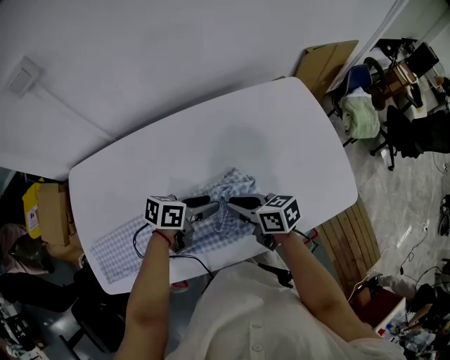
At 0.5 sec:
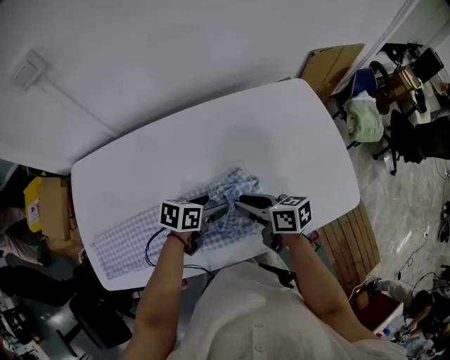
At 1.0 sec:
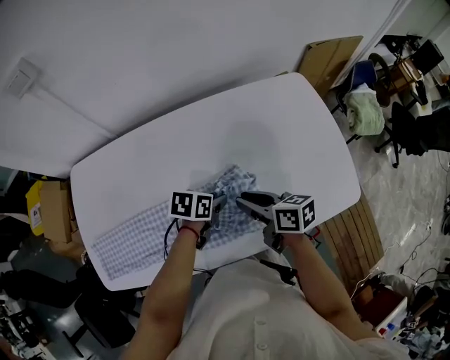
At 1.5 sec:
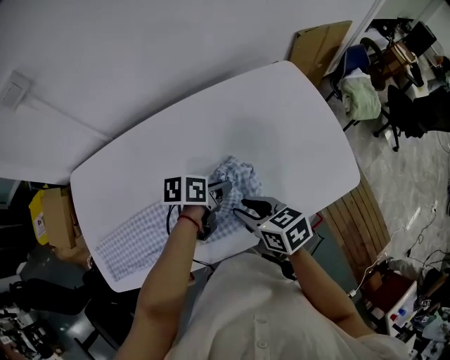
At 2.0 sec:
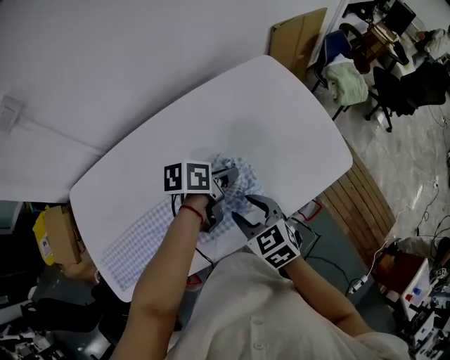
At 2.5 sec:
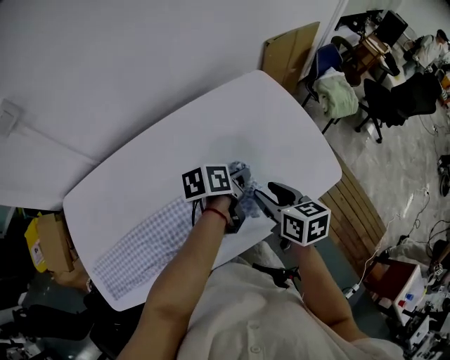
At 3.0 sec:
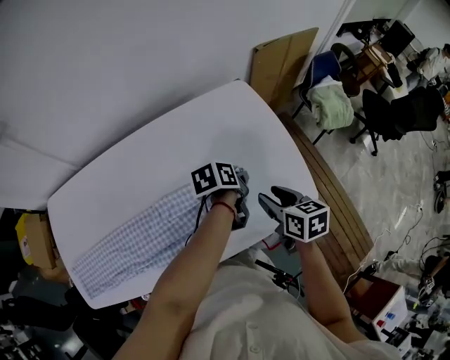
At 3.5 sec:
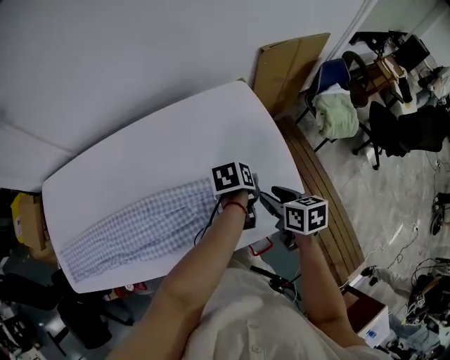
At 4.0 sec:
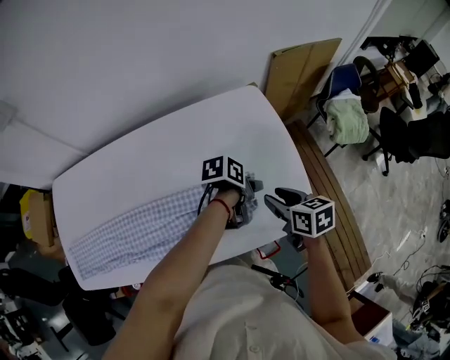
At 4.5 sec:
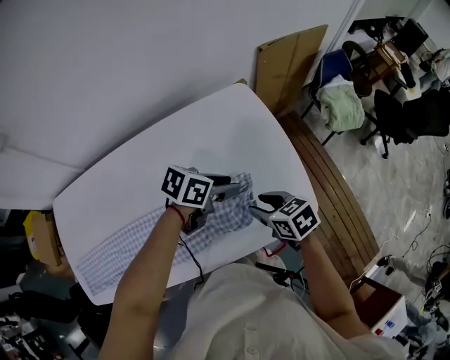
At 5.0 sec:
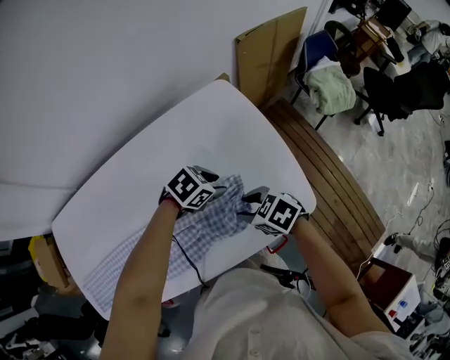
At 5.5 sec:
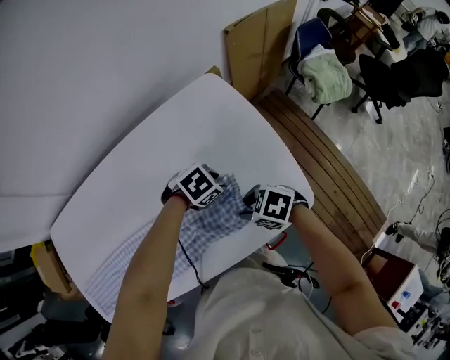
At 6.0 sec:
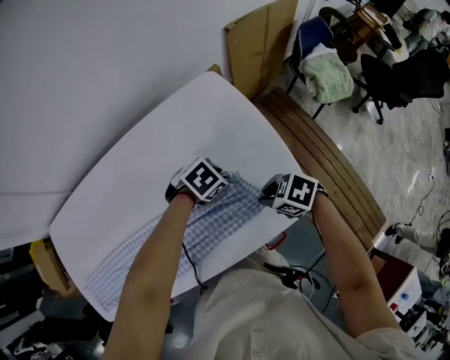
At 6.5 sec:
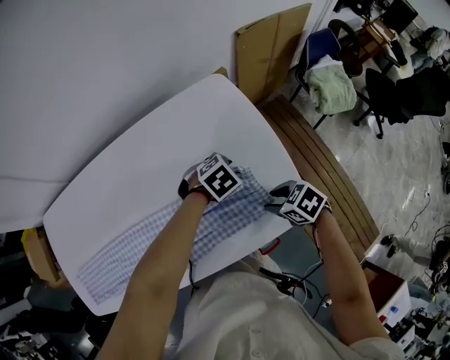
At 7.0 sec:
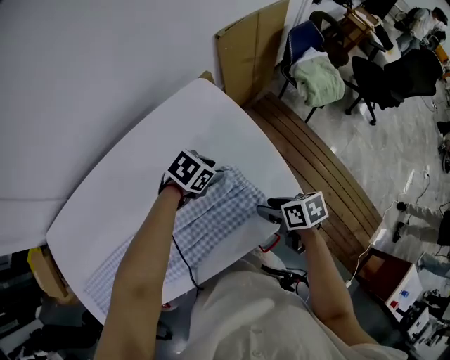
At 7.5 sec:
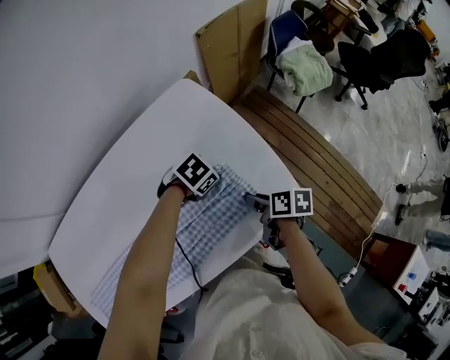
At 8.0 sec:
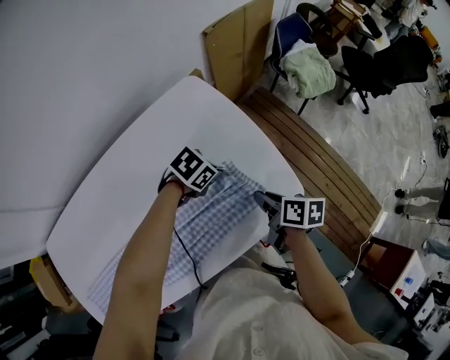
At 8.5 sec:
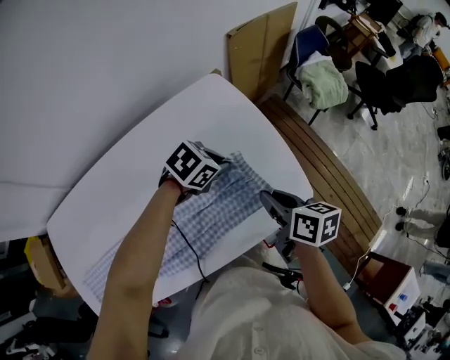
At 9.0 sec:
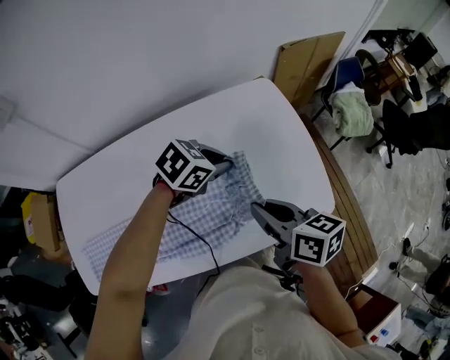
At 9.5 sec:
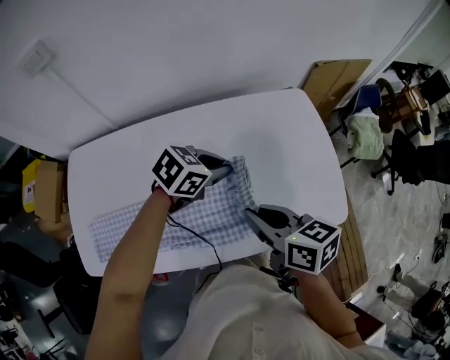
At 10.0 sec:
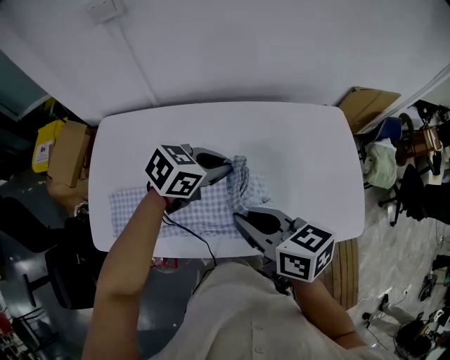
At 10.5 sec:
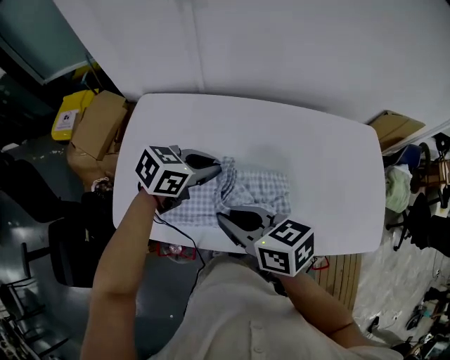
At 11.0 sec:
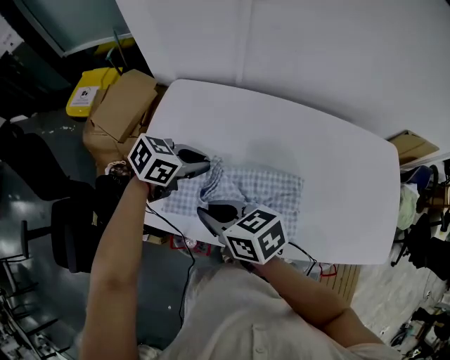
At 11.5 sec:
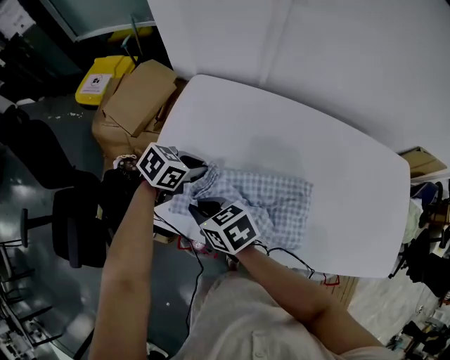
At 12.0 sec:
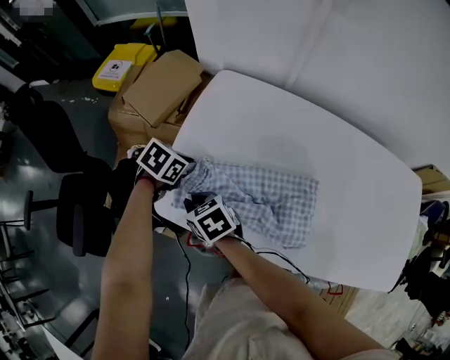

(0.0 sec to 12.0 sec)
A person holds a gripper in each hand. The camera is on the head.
0.0 sec - 2.0 sec: The left gripper shifts by about 10 cm, and closes up, while the right gripper moves approximately 10 cm, turns by about 40 degrees, and opens up.
2.0 sec - 4.0 sec: Both grippers travel together to the right and forward, some 25 cm. The right gripper swivels about 30 degrees; the left gripper changes its angle by roughly 20 degrees, and opens.
4.0 sec - 6.0 sec: Both grippers move downward, roughly 10 cm. The left gripper rolls clockwise, seen from behind, by approximately 70 degrees. Meanwhile the right gripper turns by roughly 40 degrees, and closes.
6.0 sec - 8.0 sec: The right gripper rotates around the line of its fingers by about 70 degrees, clockwise from behind, and opens and closes again.
8.0 sec - 10.0 sec: The left gripper moves some 40 cm, and turns by about 50 degrees; the right gripper moves some 50 cm, and changes its angle by about 60 degrees.
10.0 sec - 12.0 sec: The two grippers travel together, approximately 50 cm. The left gripper changes its angle by roughly 40 degrees; the right gripper rotates some 40 degrees.

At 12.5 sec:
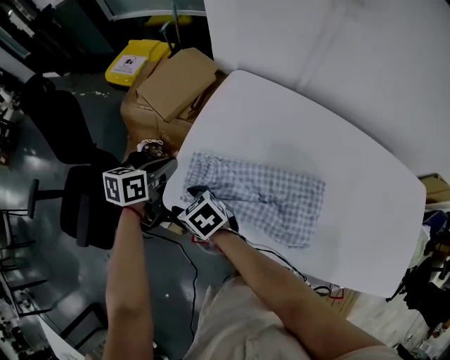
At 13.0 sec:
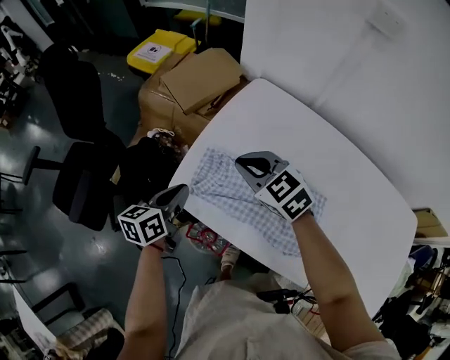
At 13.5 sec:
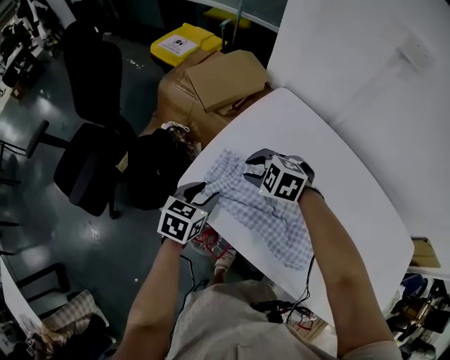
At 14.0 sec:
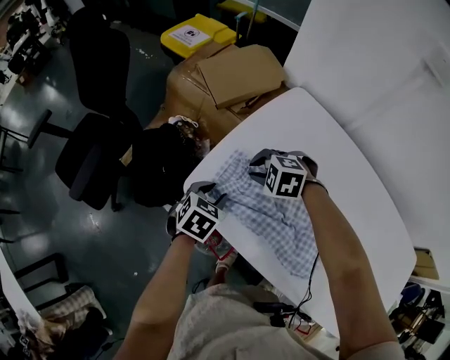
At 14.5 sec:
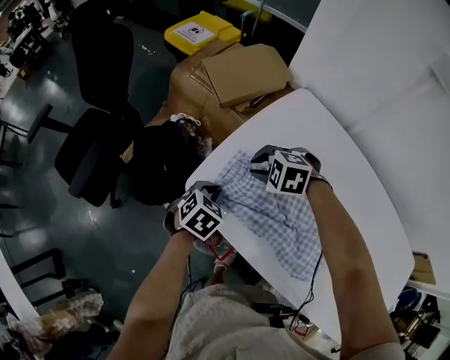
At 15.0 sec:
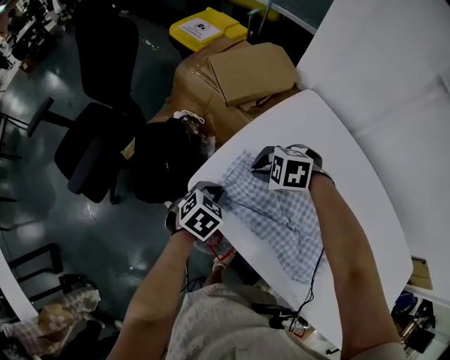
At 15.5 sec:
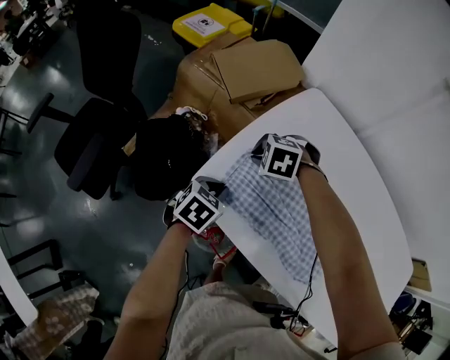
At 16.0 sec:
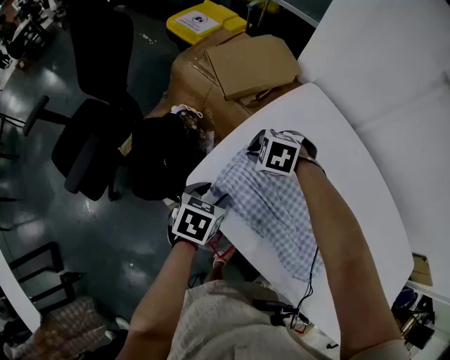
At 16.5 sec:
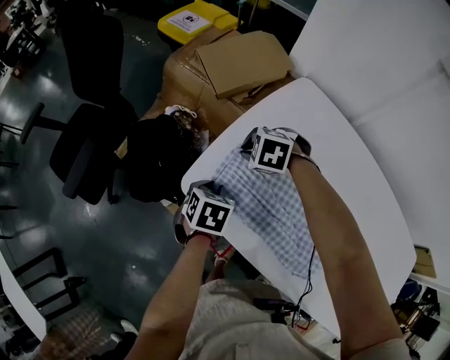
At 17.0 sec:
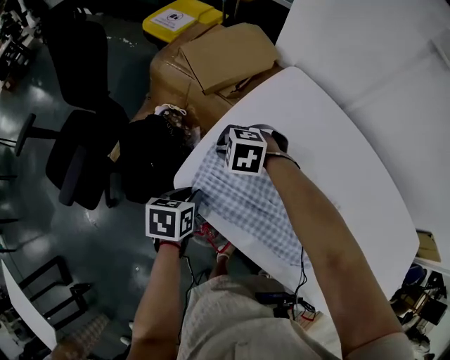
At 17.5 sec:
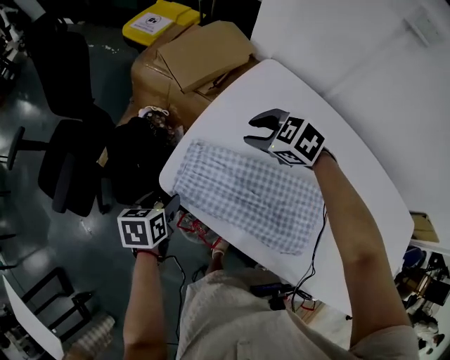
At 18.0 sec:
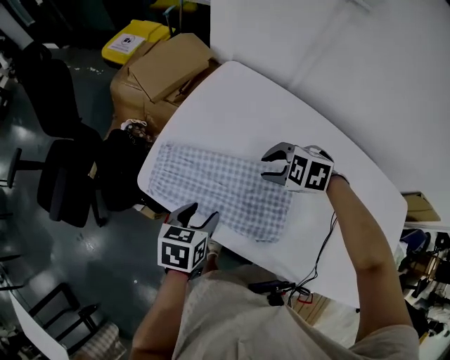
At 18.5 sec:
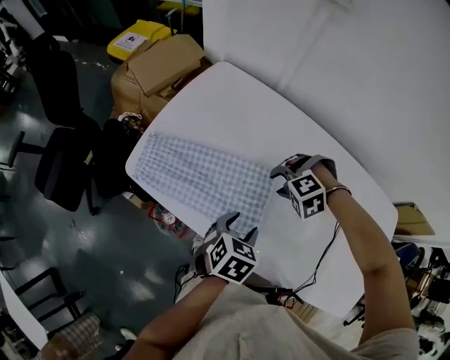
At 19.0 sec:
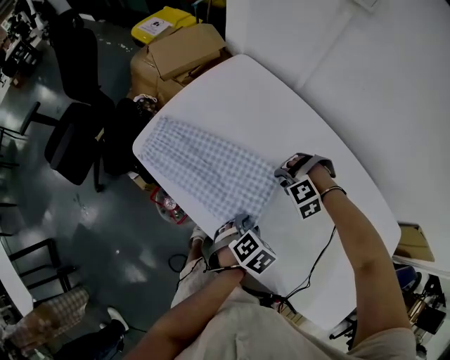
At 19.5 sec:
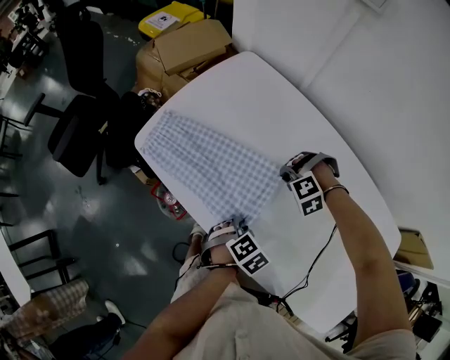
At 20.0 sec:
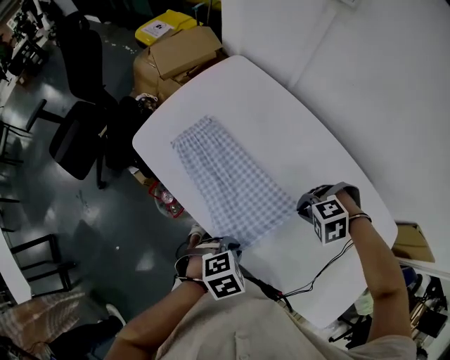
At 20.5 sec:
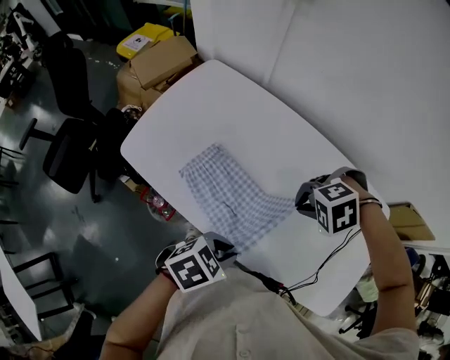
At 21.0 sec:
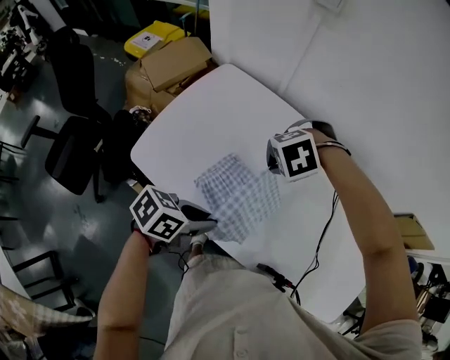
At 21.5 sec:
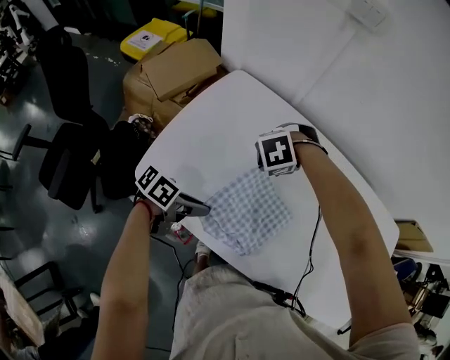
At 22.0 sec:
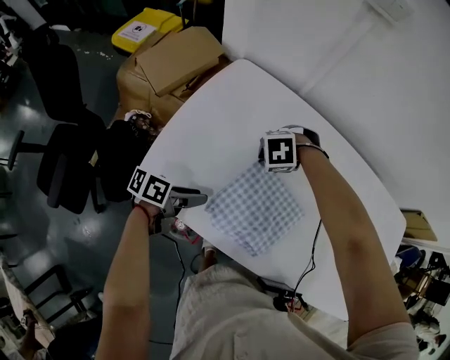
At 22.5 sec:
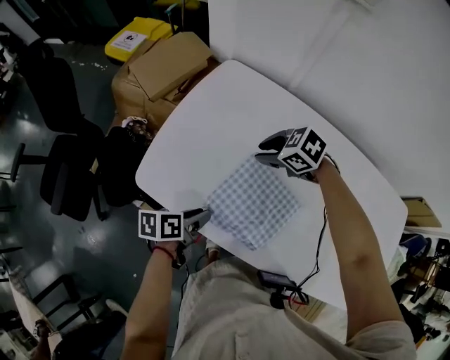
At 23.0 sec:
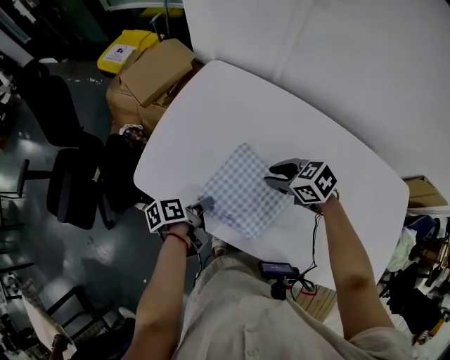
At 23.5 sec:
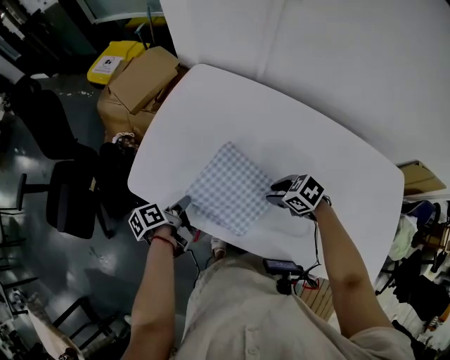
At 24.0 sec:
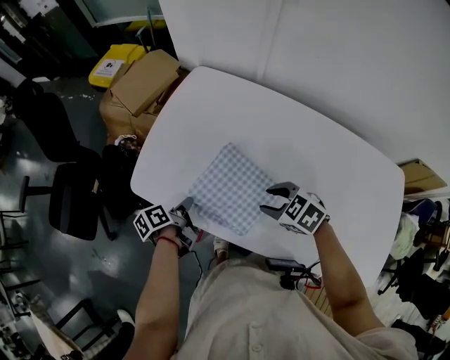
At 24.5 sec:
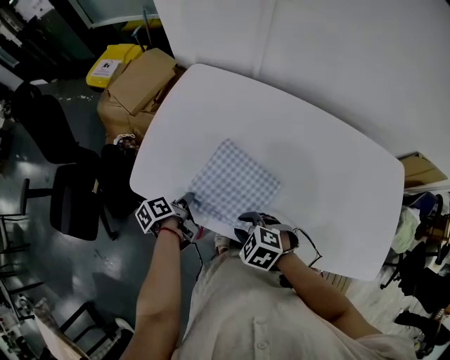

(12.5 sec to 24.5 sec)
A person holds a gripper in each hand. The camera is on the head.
12.5 sec - 14.5 sec: The left gripper goes approximately 15 cm downward and backward, rotates about 40 degrees, and opens and closes again. The right gripper moves to the right and forward, about 15 cm, rotates around the line of its fingers by approximately 60 degrees, counterclockwise from behind, and closes its fingers.
14.5 sec - 16.5 sec: The right gripper changes place by about 5 cm; the left gripper changes its angle by roughly 20 degrees, and opens, then closes again.
16.5 sec - 18.5 sec: The right gripper ends up some 40 cm from where it was, swivels approximately 30 degrees, and opens up; the left gripper changes place by roughly 35 cm, changes its angle by about 30 degrees, and opens its fingers.
18.5 sec - 20.5 sec: The left gripper moves about 20 cm, swivels about 30 degrees, and closes up, while the right gripper moves approximately 20 cm, and closes.
20.5 sec - 22.5 sec: The right gripper shifts by some 35 cm, twists some 50 degrees clockwise, seen from behind, and opens its fingers; the left gripper shifts by some 35 cm, and twists approximately 50 degrees counterclockwise, seen from behind.
22.5 sec - 24.5 sec: The left gripper changes its angle by some 30 degrees, and closes up. The right gripper shifts by about 25 cm.

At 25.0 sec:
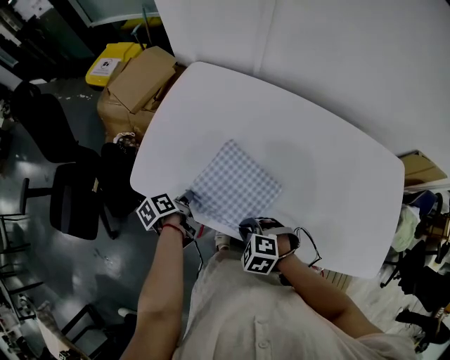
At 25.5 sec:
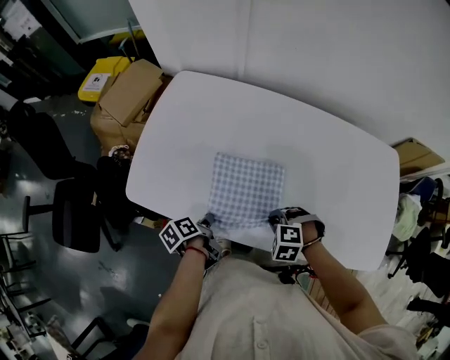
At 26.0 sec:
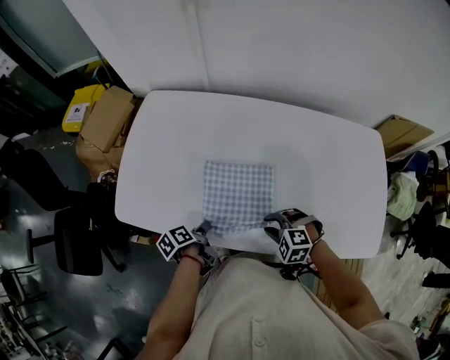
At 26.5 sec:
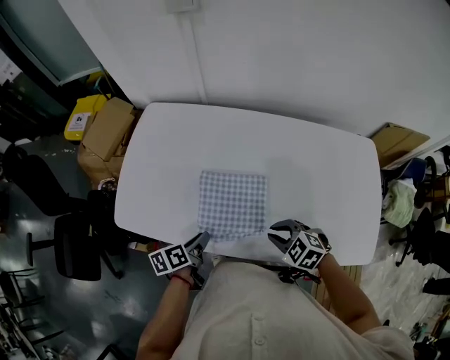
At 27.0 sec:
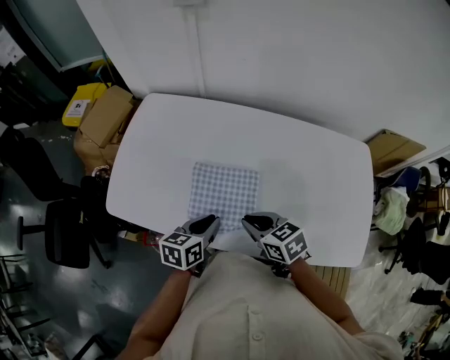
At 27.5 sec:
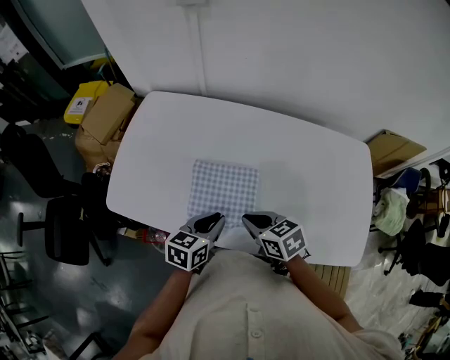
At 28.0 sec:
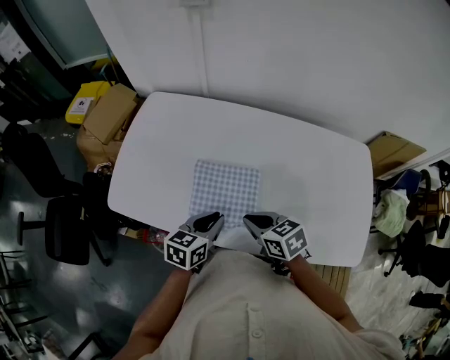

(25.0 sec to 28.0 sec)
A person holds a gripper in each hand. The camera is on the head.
25.0 sec - 26.5 sec: The right gripper ends up some 20 cm from where it was, and swivels approximately 20 degrees. The left gripper ends up approximately 20 cm from where it was, and changes its angle by approximately 30 degrees.
26.5 sec - 28.0 sec: The left gripper heads to the right and upward, covering about 10 cm, and rolls clockwise, seen from behind, by about 40 degrees; the right gripper goes some 5 cm upward, and rotates some 40 degrees.
